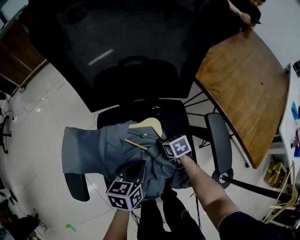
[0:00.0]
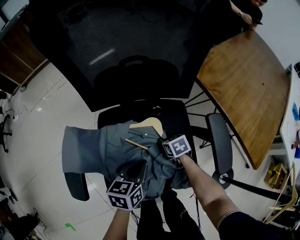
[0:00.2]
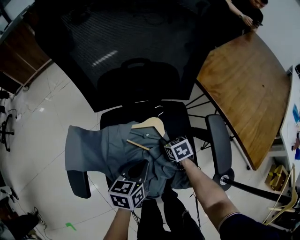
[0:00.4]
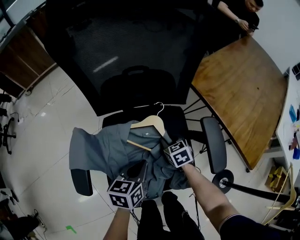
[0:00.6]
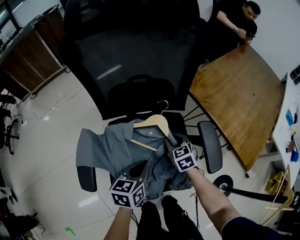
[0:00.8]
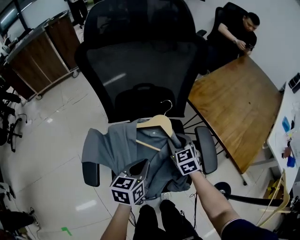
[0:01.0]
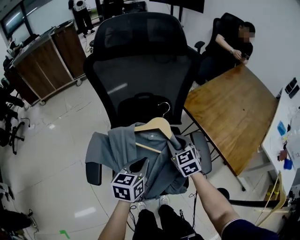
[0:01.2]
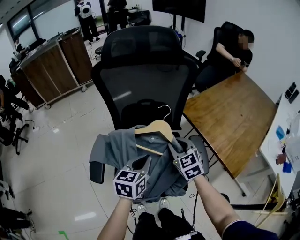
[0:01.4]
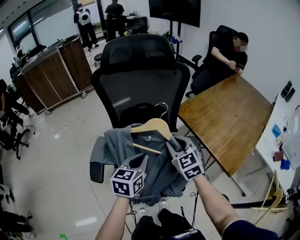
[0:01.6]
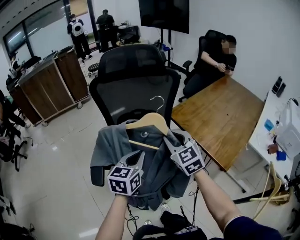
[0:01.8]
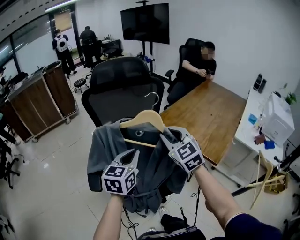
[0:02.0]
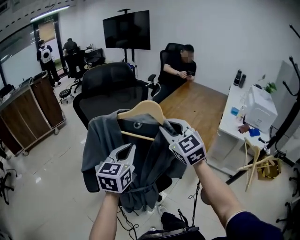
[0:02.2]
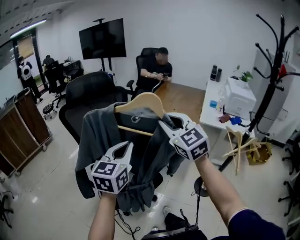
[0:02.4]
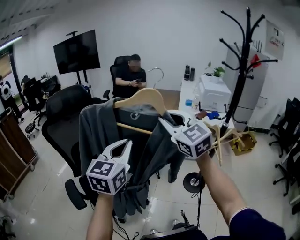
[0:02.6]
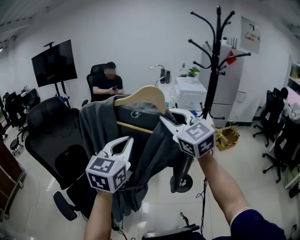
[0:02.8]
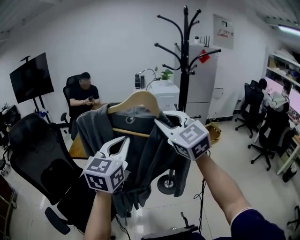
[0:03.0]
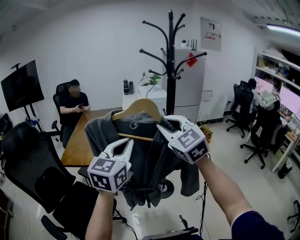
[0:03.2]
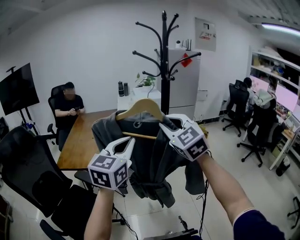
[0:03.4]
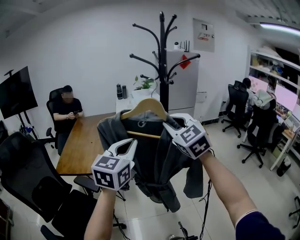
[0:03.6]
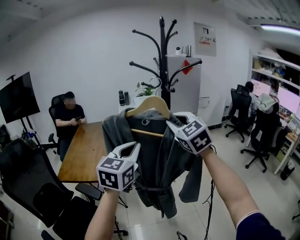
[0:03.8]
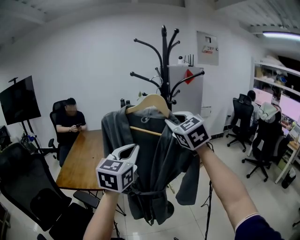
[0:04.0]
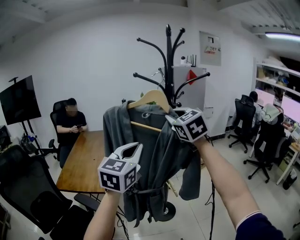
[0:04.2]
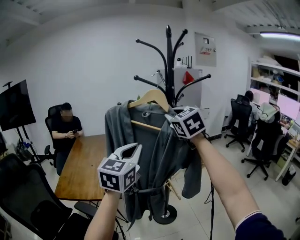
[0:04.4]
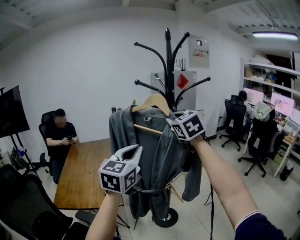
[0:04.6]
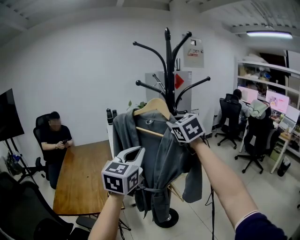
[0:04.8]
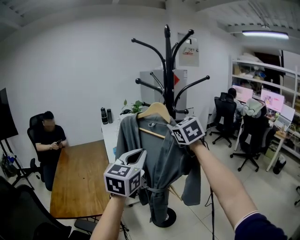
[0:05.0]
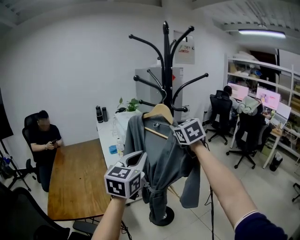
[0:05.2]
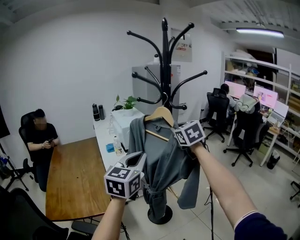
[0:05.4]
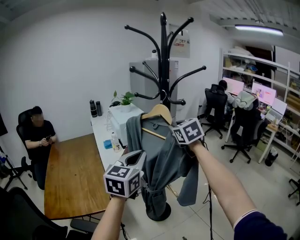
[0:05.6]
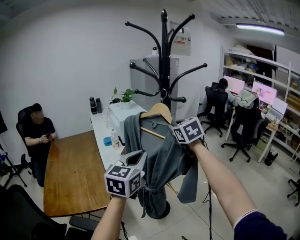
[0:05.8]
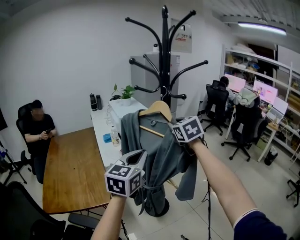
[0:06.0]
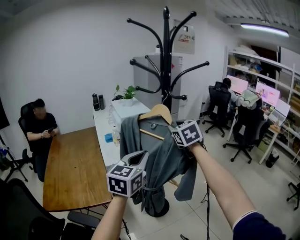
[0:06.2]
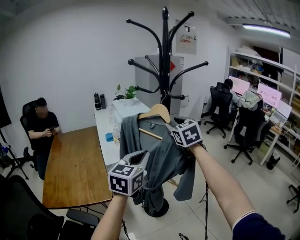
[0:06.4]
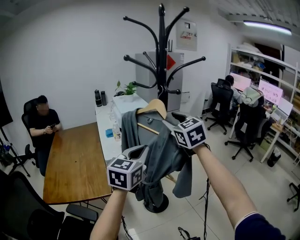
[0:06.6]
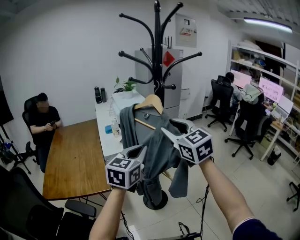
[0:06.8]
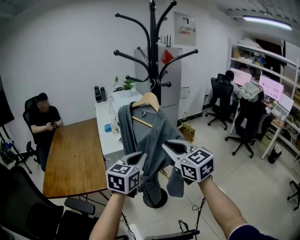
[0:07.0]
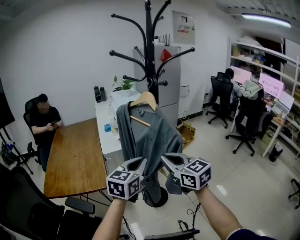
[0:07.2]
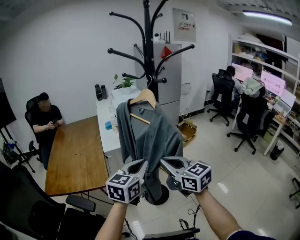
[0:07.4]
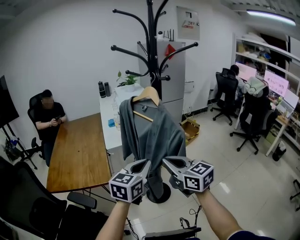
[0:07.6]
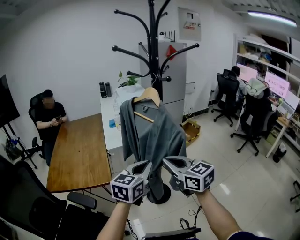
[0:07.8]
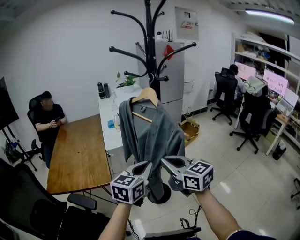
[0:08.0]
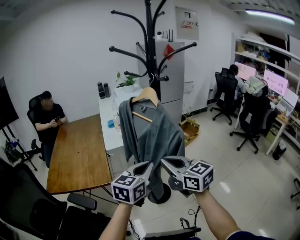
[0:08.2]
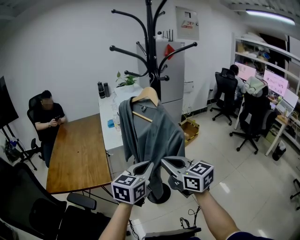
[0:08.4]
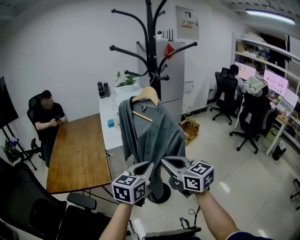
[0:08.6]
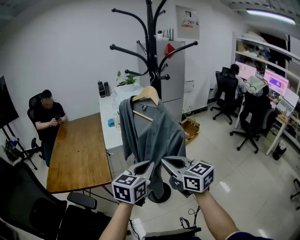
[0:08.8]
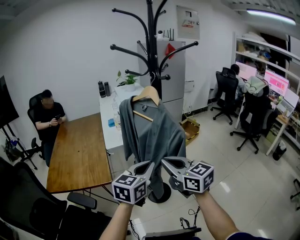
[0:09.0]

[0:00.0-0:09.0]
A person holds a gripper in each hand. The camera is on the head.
0.0 to 1.6 s: The right gripper shifts roughly 40 cm upward, and tilts its fingers roughly 40 degrees upward; the left gripper moves upward, roughly 20 cm, and rotates roughly 20 degrees.
1.6 to 3.0 s: The left gripper moves roughly 50 cm, and changes its angle by about 70 degrees. Meanwhile the right gripper shifts by roughly 60 cm, and turns by some 50 degrees.
3.0 to 4.4 s: The grippers both shift forward and to the right by roughly 25 cm. The right gripper rotates roughly 30 degrees.
4.4 to 6.0 s: Both grippers move downward and forward, some 15 cm. The right gripper swivels approximately 20 degrees.
6.0 to 7.6 s: The left gripper goes some 15 cm downward, backward and to the right; the right gripper travels backward and downward by roughly 25 cm, rotates roughly 40 degrees, and closes.
7.6 to 9.0 s: The grippers stay close to where they were, moving slightly.

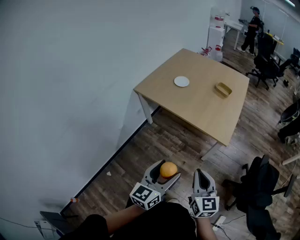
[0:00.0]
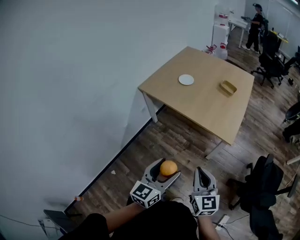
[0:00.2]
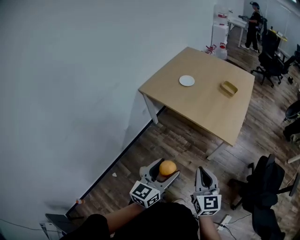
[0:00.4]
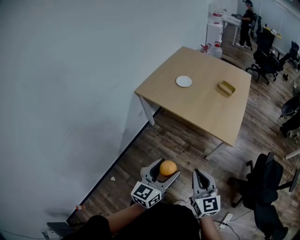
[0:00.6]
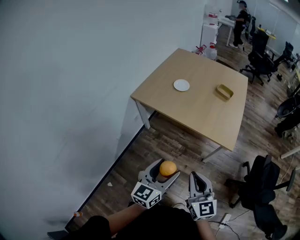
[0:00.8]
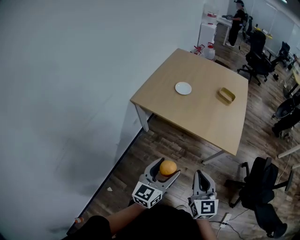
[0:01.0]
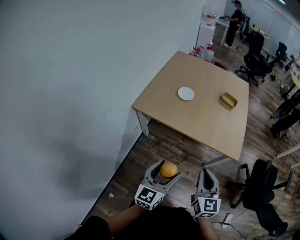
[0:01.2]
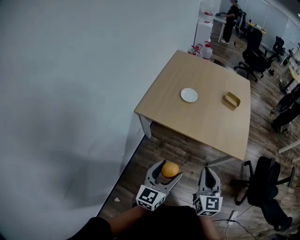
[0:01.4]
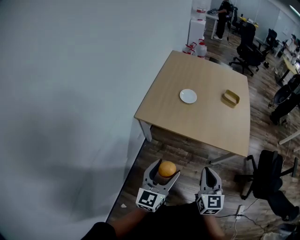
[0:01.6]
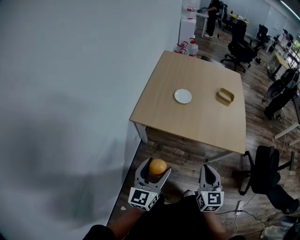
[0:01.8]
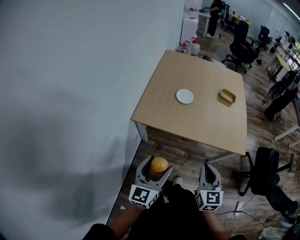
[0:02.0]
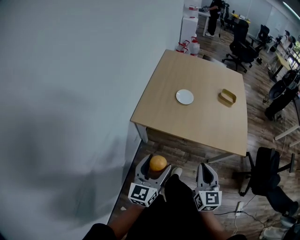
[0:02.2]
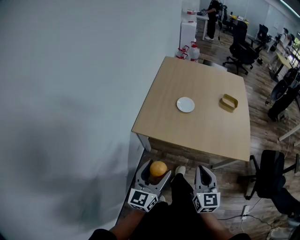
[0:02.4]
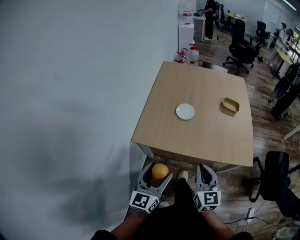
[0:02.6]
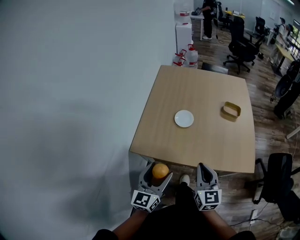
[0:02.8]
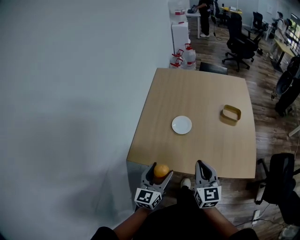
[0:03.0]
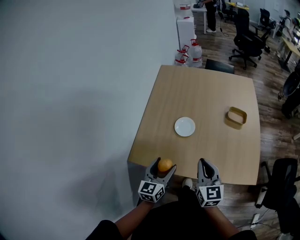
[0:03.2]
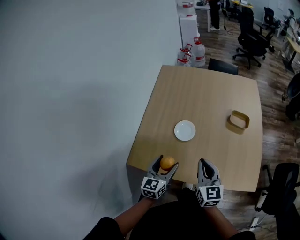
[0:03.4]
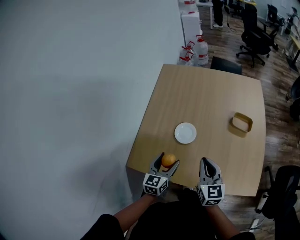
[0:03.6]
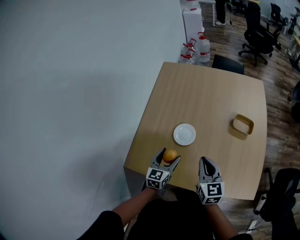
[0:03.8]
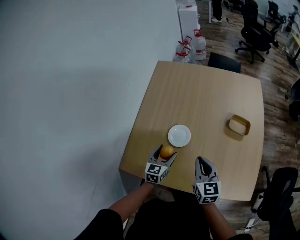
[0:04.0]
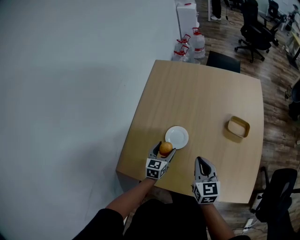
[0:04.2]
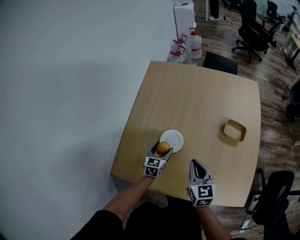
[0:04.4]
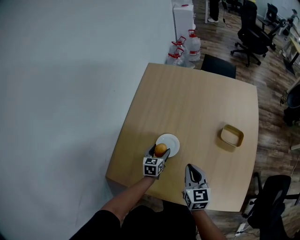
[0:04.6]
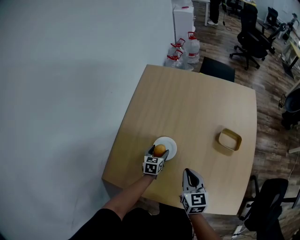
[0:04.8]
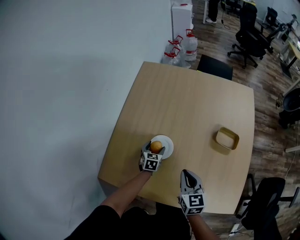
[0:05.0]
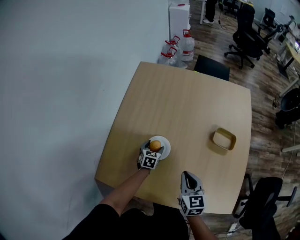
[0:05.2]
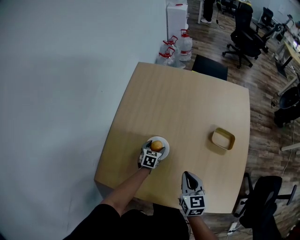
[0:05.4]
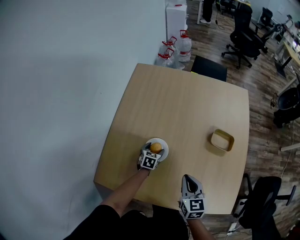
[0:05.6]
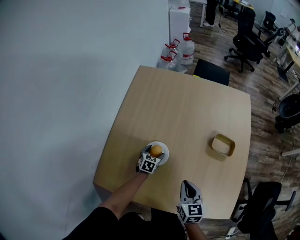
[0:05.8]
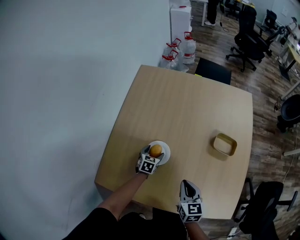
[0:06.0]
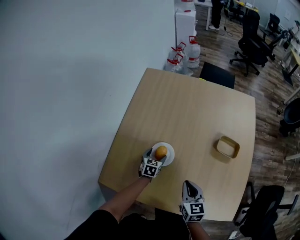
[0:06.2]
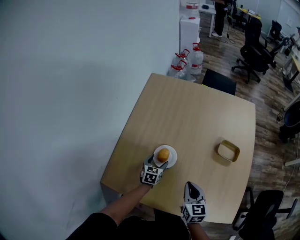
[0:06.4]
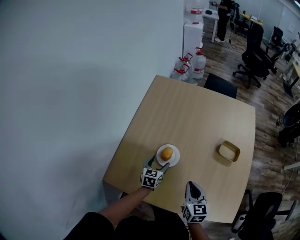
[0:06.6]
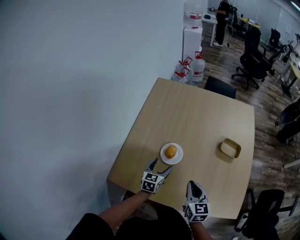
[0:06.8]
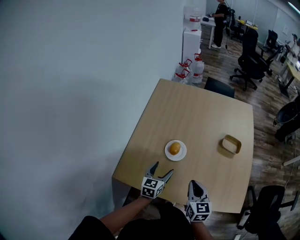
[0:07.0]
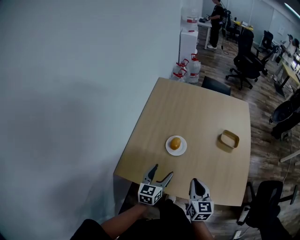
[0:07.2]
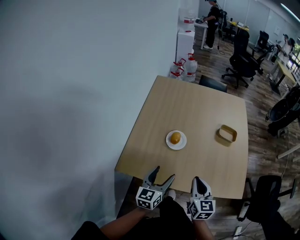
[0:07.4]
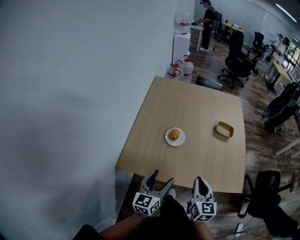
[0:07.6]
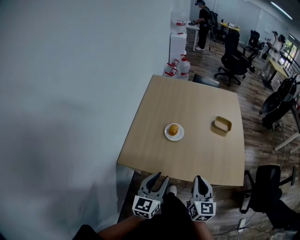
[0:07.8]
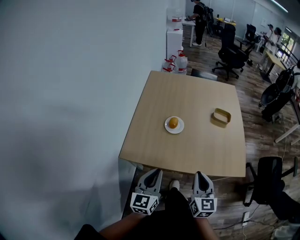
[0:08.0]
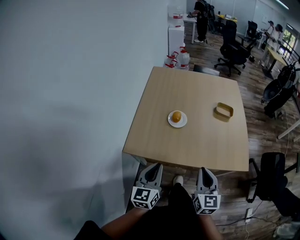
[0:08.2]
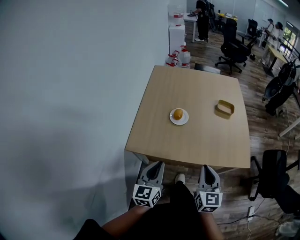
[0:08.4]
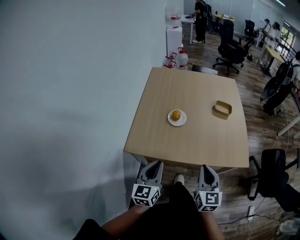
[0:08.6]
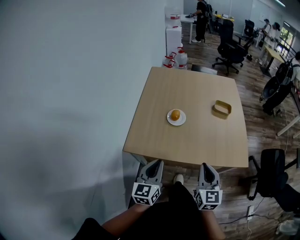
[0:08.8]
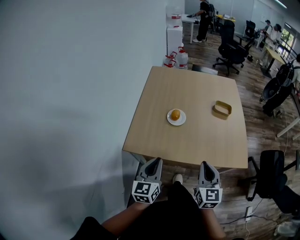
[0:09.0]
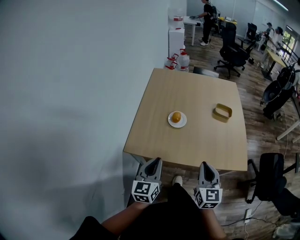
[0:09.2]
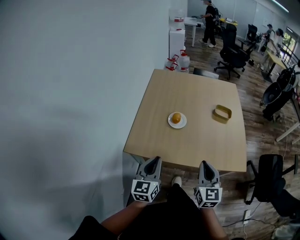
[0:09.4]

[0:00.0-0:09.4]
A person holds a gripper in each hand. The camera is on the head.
0.0 to 1.6 s: Both grippers travel together to the left and forward, roughly 35 cm. The right gripper rotates about 20 degrees.
1.6 to 3.2 s: The two grippers go approximately 30 cm forward.
3.2 to 4.8 s: The left gripper travels forward and downward by approximately 35 cm, and changes its angle by approximately 30 degrees; the right gripper moves forward and downward, about 20 cm.
6.2 to 7.8 s: The left gripper travels backward and upward by approximately 50 cm, angles its fingers upward, by roughly 40 degrees, and closes. The right gripper shifts roughly 25 cm backward and upward, and swivels roughly 20 degrees.
7.8 to 9.4 s: The grippers move only a little.

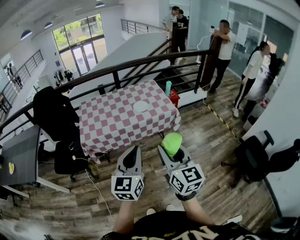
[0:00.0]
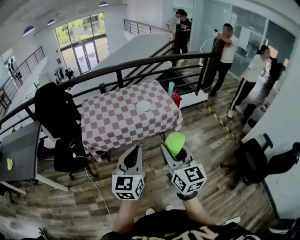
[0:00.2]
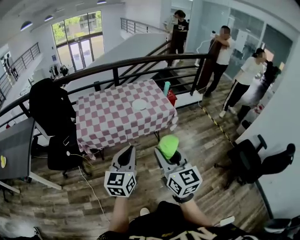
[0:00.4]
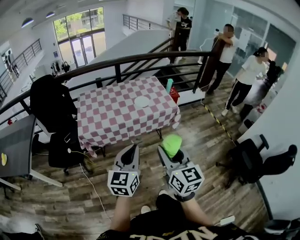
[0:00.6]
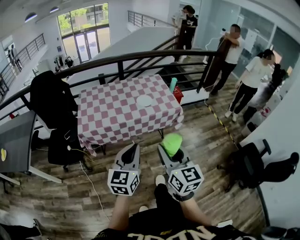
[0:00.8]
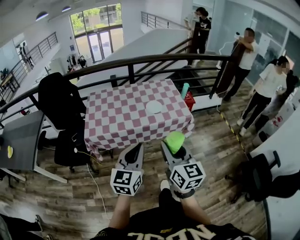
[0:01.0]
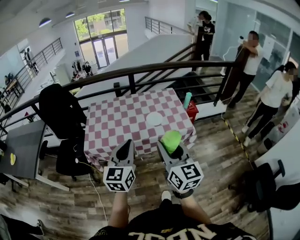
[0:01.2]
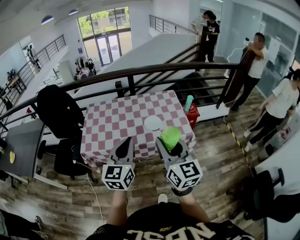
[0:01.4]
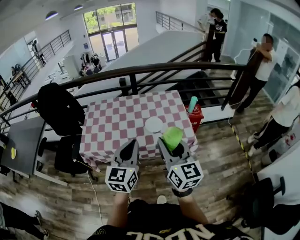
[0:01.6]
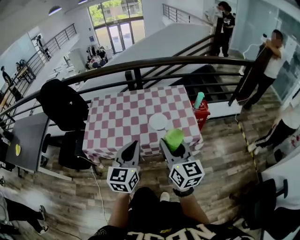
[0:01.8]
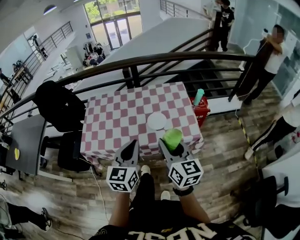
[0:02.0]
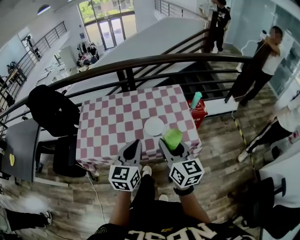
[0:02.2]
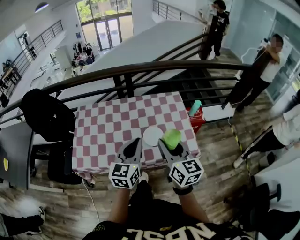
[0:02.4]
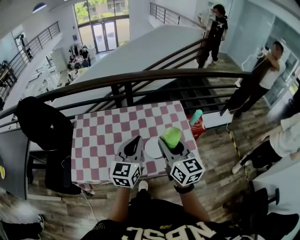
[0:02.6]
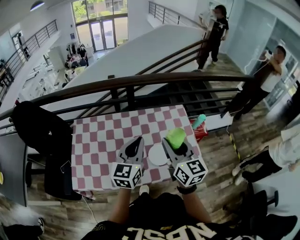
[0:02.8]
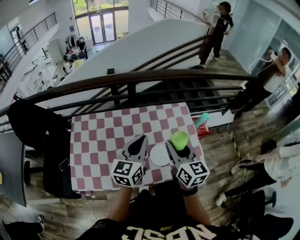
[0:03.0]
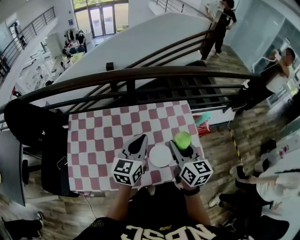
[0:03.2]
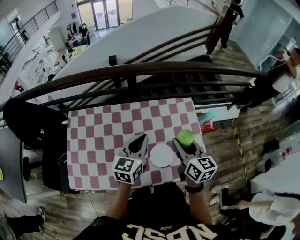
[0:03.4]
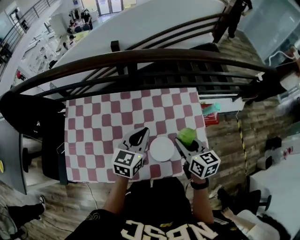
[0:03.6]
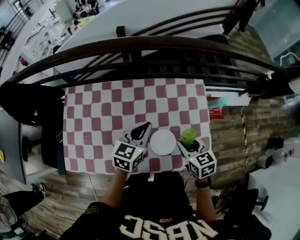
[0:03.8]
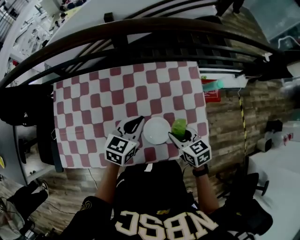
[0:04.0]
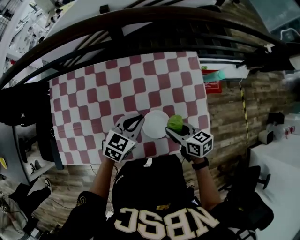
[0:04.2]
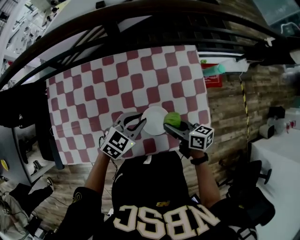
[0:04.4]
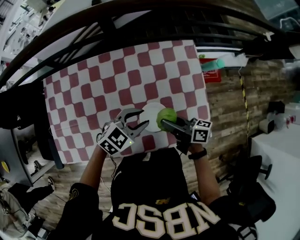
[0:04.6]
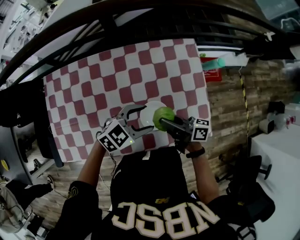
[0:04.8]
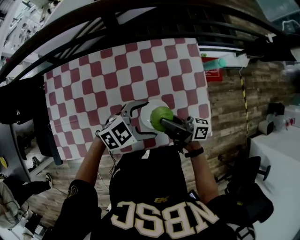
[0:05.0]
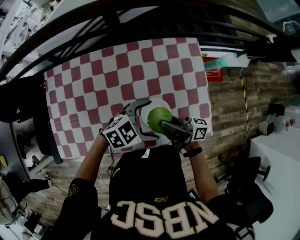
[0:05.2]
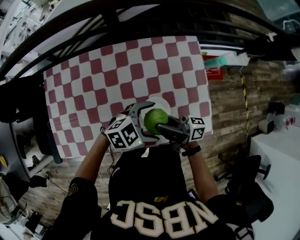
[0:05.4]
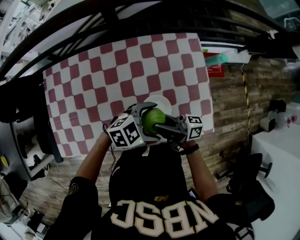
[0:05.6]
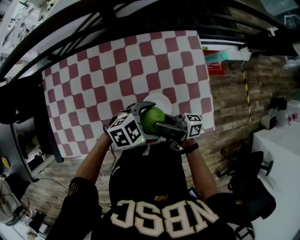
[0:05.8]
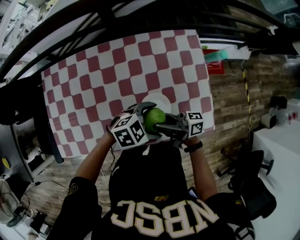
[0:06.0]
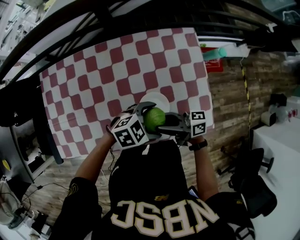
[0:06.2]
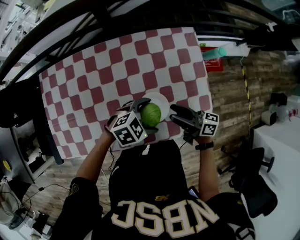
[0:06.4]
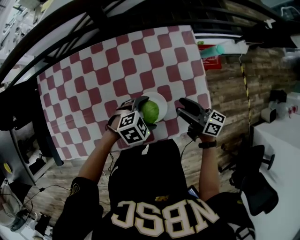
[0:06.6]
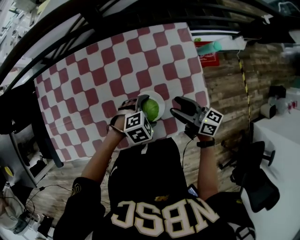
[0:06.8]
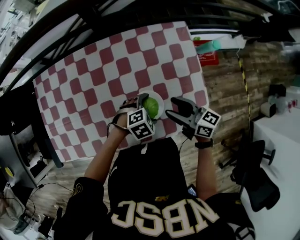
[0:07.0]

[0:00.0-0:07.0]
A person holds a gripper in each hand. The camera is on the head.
0.0 to 1.4 s: The two grippers go approximately 25 cm forward.
1.4 to 2.8 s: Both grippers move forward, some 35 cm.
2.8 to 4.2 s: Both grippers travel together downward, roughly 25 cm. The left gripper rotates about 40 degrees, while the right gripper swivels about 50 degrees.
4.2 to 5.6 s: The left gripper shifts by about 10 cm, changes its angle by roughly 40 degrees, and opens. The right gripper changes place by about 10 cm, and points its fingers approximately 50 degrees further upward.
5.6 to 7.0 s: The left gripper shifts about 10 cm downward, and turns by roughly 30 degrees. The right gripper moves roughly 10 cm, tilts its fingers roughly 30 degrees downward, and opens.
